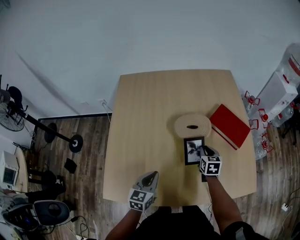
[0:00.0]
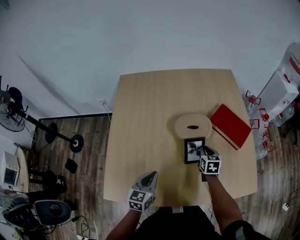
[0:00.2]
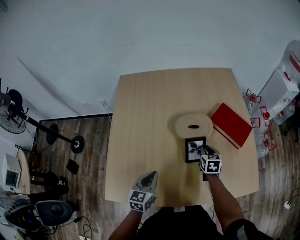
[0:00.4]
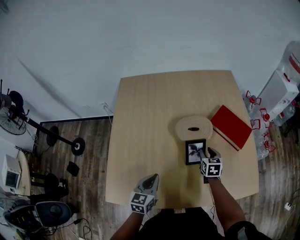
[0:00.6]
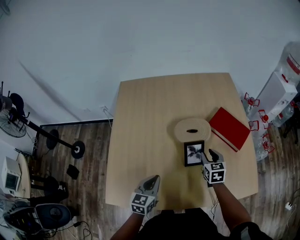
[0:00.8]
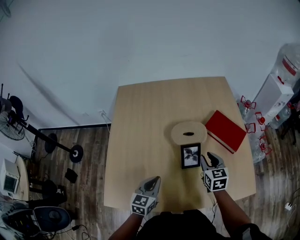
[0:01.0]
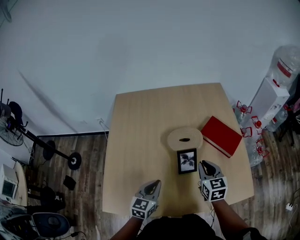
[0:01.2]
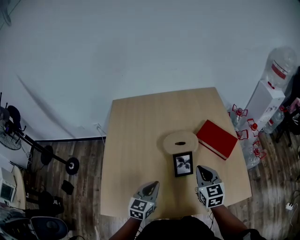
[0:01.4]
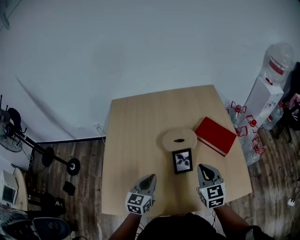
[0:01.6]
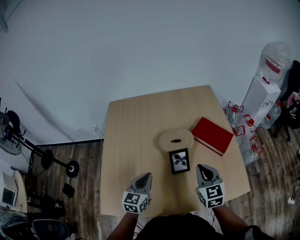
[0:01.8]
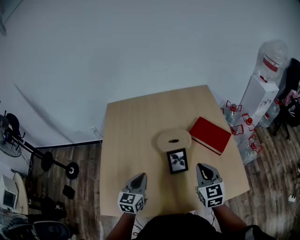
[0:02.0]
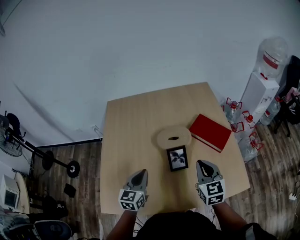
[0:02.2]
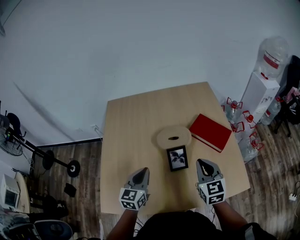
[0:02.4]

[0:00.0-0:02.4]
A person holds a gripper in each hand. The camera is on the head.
0:00.0 to 0:01.2: The right gripper is displaced upward and backward by roughly 15 cm.
0:01.2 to 0:02.4: The two grippers go approximately 5 cm upward.

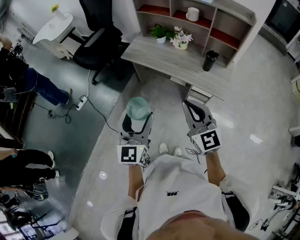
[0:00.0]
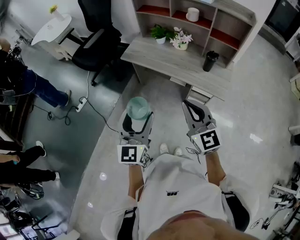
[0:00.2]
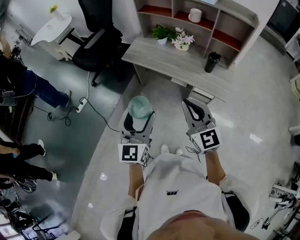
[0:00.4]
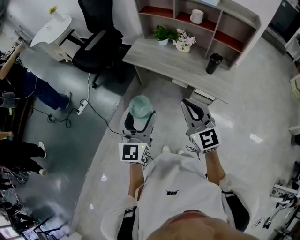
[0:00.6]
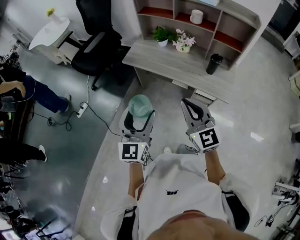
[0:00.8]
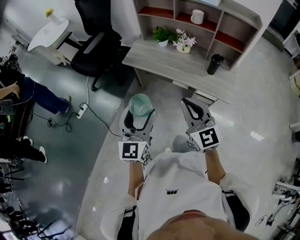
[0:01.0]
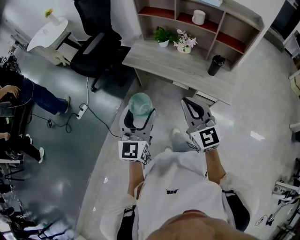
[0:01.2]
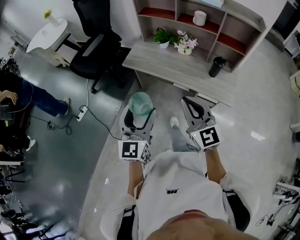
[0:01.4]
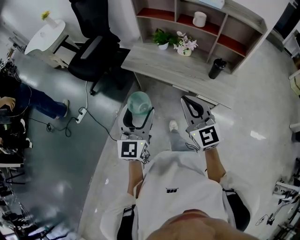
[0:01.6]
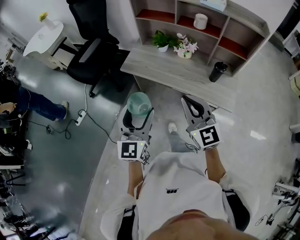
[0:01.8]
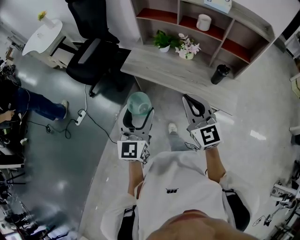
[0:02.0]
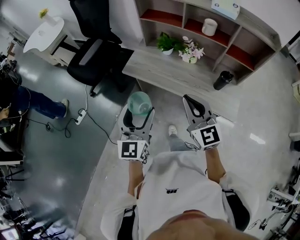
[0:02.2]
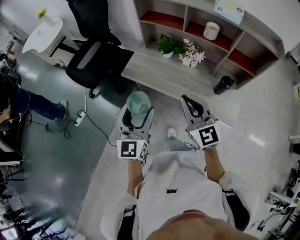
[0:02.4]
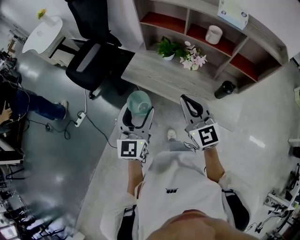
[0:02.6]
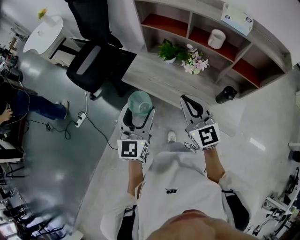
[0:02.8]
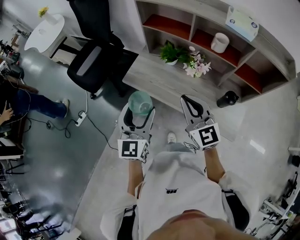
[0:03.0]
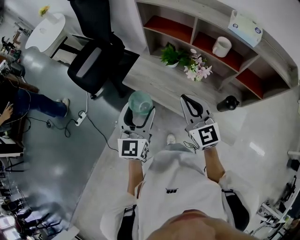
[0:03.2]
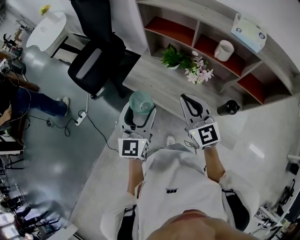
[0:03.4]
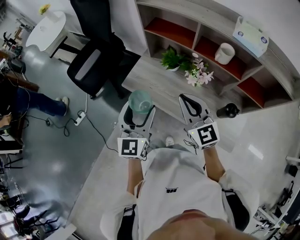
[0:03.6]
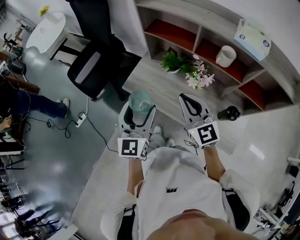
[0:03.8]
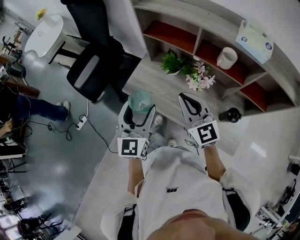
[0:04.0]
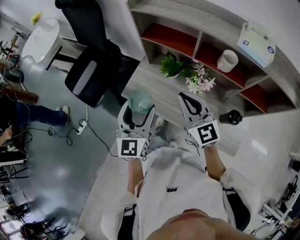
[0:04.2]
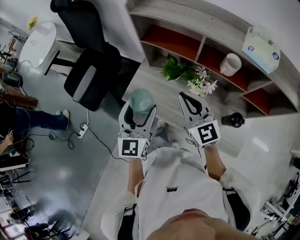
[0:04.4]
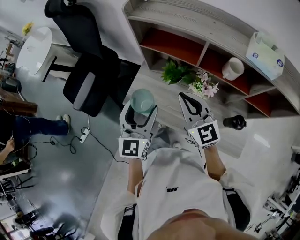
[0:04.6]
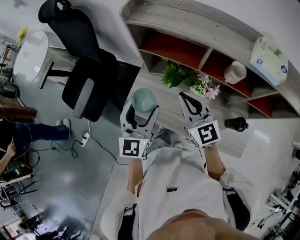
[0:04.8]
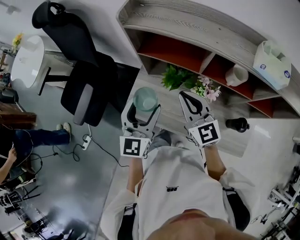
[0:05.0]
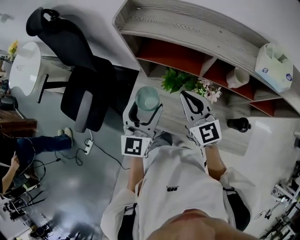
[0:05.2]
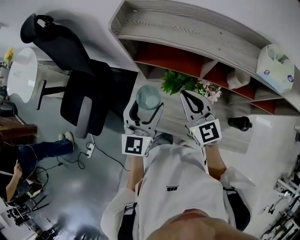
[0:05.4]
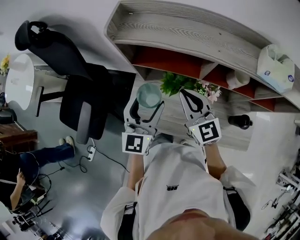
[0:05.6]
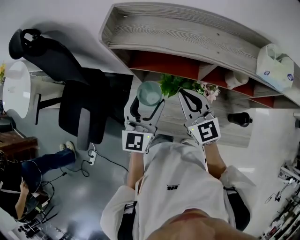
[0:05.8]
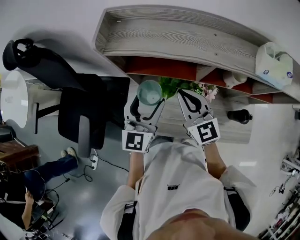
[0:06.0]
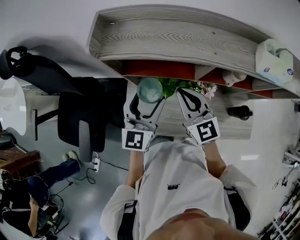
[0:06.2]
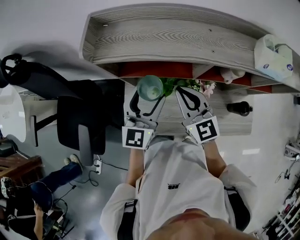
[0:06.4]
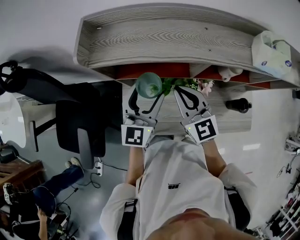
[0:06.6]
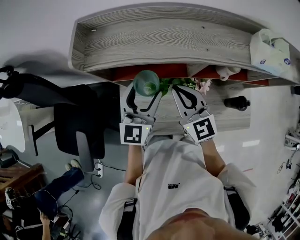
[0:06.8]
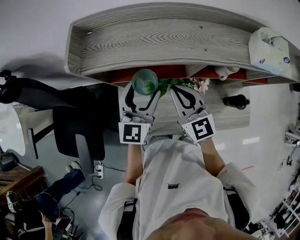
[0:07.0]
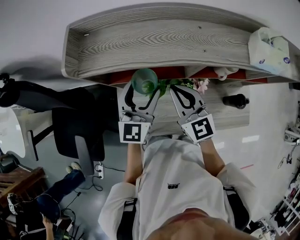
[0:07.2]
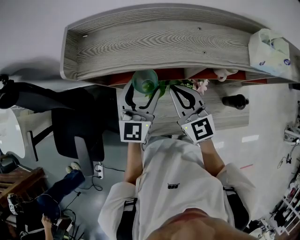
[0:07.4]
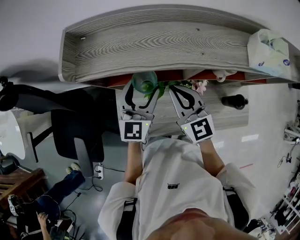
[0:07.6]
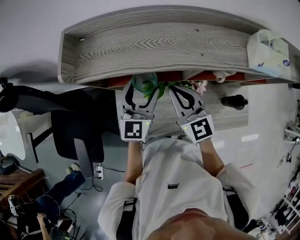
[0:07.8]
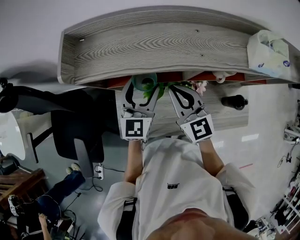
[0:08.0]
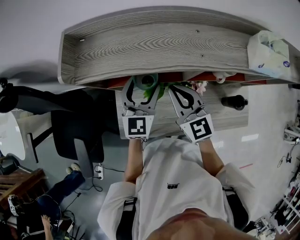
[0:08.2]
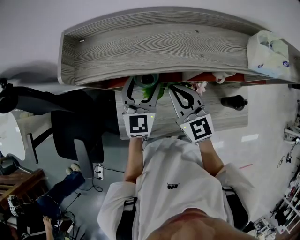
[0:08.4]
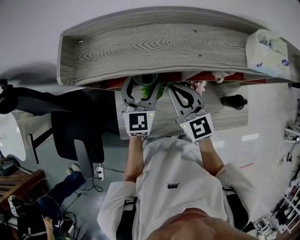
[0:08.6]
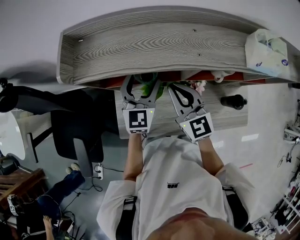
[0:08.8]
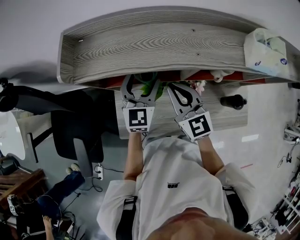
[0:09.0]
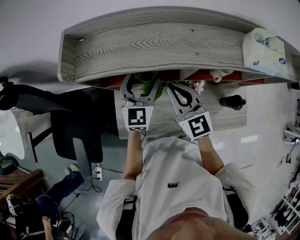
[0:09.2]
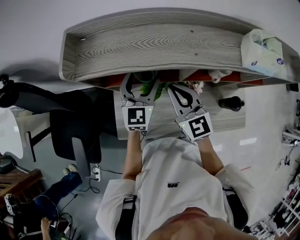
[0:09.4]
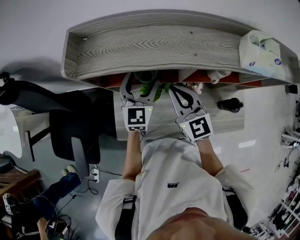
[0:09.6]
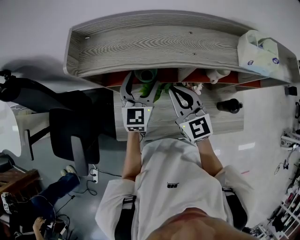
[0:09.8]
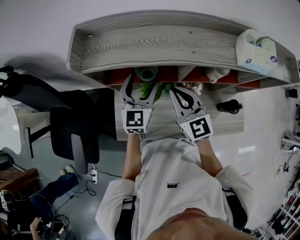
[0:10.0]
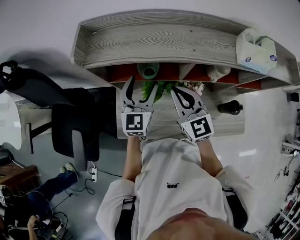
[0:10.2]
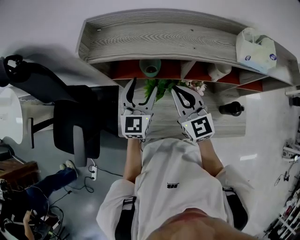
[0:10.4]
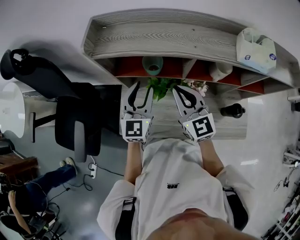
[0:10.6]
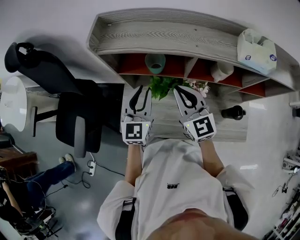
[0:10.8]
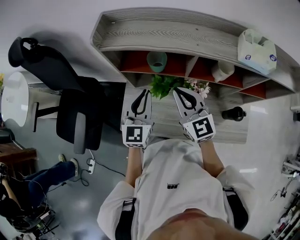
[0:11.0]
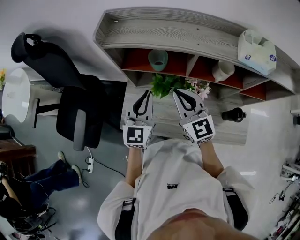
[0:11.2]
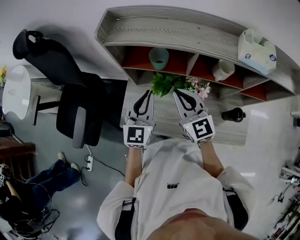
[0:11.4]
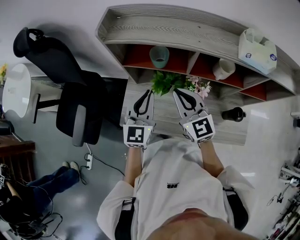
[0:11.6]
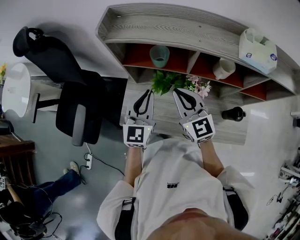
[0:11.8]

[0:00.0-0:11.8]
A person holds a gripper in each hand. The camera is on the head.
0:00.0 to 0:01.4: The right gripper travels forward and to the left by some 10 cm, while the left gripper heads forward, covering some 10 cm.
0:01.4 to 0:03.0: The two grippers go roughly 25 cm forward.
0:03.0 to 0:04.4: The grippers both shift forward by approximately 15 cm.
0:04.4 to 0:06.0: Both grippers travel together forward, roughly 20 cm. The left gripper changes its angle by approximately 30 degrees.
0:06.0 to 0:07.4: The left gripper is displaced forward by approximately 5 cm.
0:07.4 to 0:08.8: The grippers move only a little.
0:08.8 to 0:10.4: The left gripper heads backward, covering some 5 cm.
0:10.4 to 0:11.8: The left gripper travels backward by about 10 cm, and closes. The right gripper changes place by approximately 5 cm.

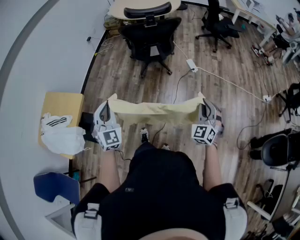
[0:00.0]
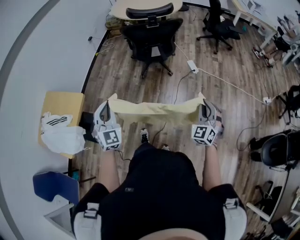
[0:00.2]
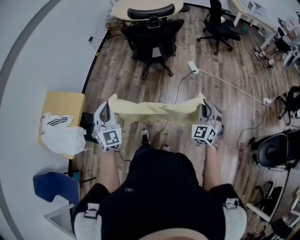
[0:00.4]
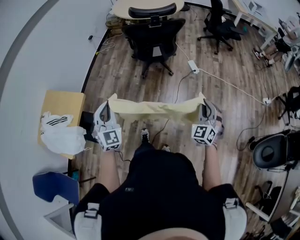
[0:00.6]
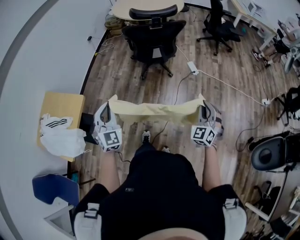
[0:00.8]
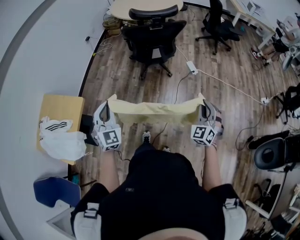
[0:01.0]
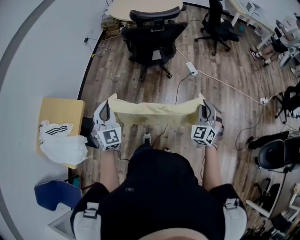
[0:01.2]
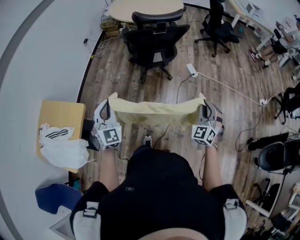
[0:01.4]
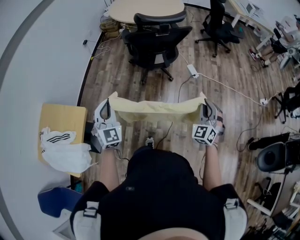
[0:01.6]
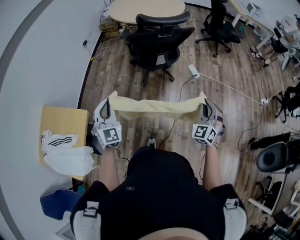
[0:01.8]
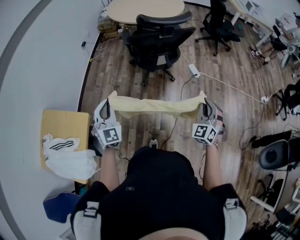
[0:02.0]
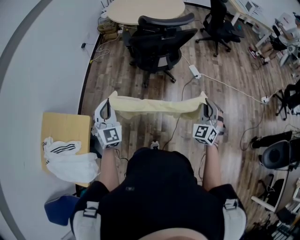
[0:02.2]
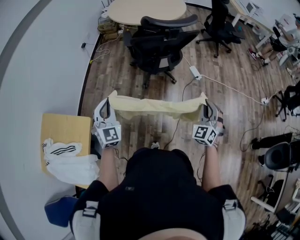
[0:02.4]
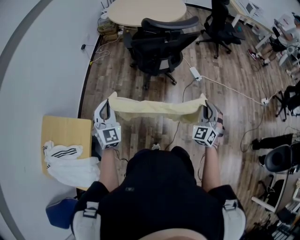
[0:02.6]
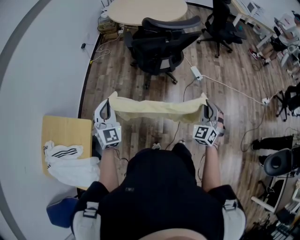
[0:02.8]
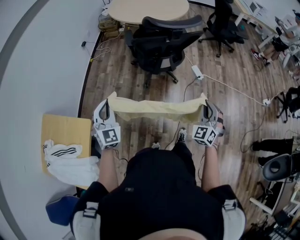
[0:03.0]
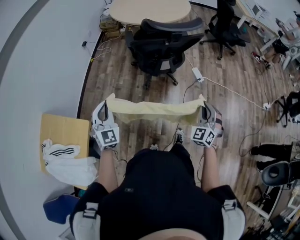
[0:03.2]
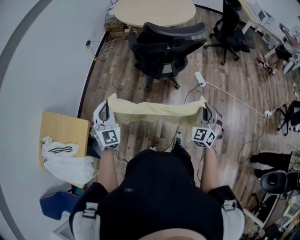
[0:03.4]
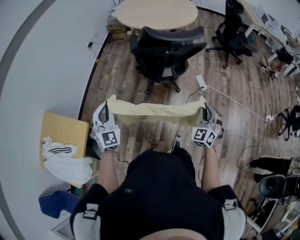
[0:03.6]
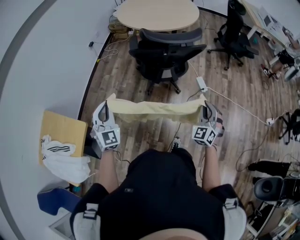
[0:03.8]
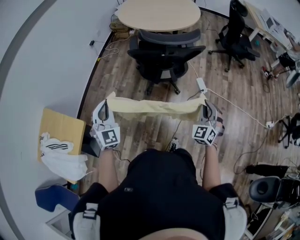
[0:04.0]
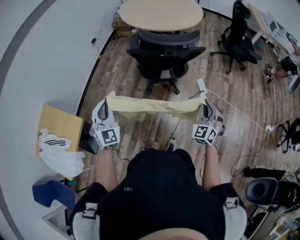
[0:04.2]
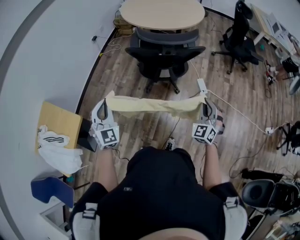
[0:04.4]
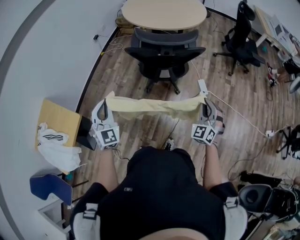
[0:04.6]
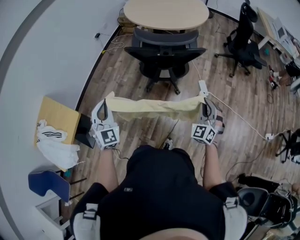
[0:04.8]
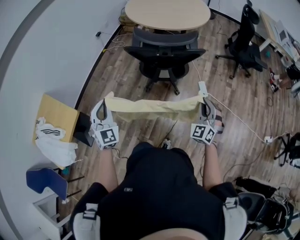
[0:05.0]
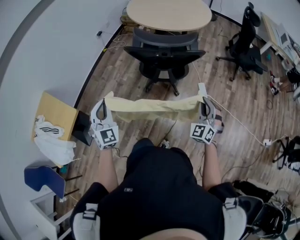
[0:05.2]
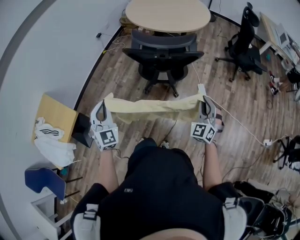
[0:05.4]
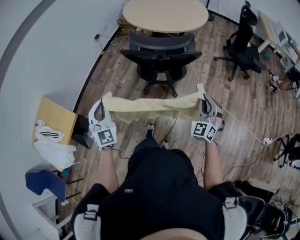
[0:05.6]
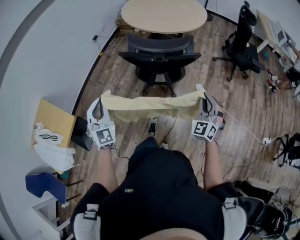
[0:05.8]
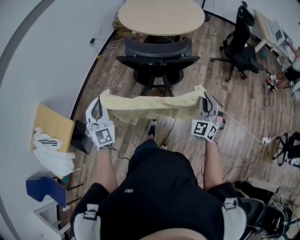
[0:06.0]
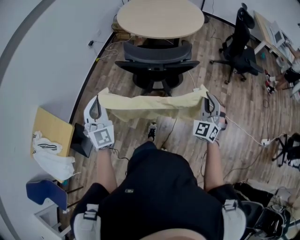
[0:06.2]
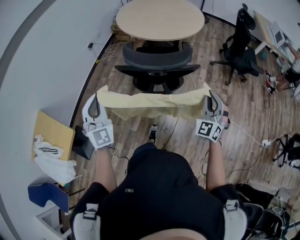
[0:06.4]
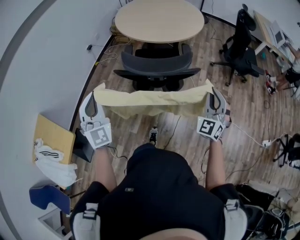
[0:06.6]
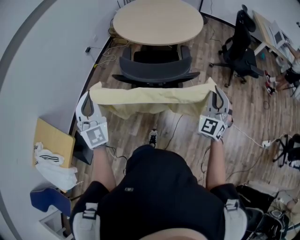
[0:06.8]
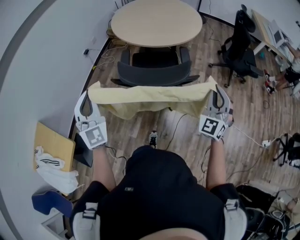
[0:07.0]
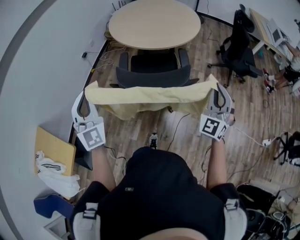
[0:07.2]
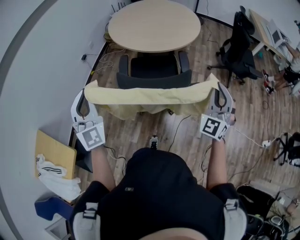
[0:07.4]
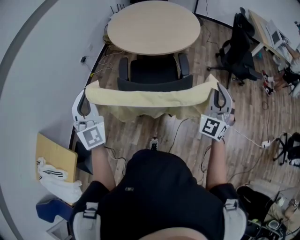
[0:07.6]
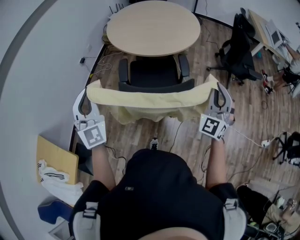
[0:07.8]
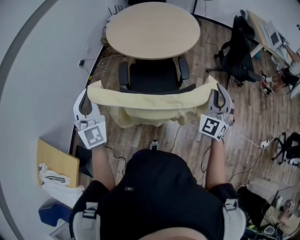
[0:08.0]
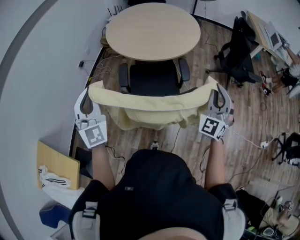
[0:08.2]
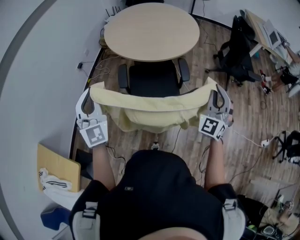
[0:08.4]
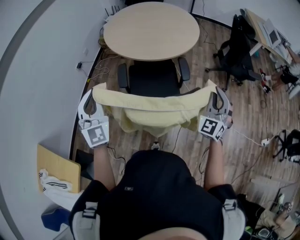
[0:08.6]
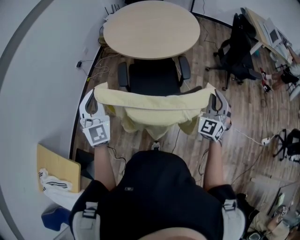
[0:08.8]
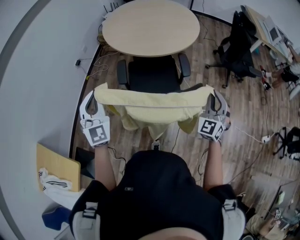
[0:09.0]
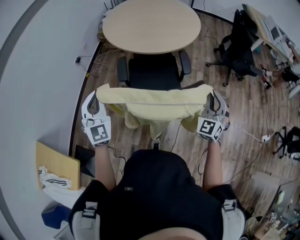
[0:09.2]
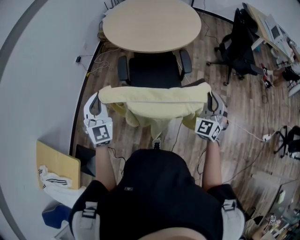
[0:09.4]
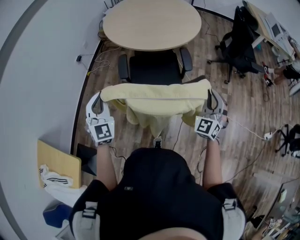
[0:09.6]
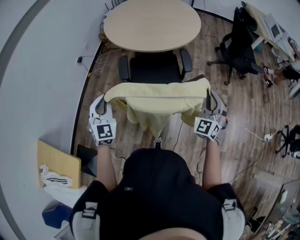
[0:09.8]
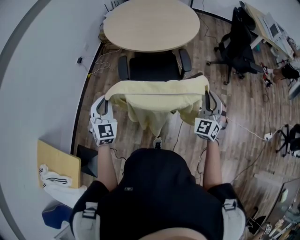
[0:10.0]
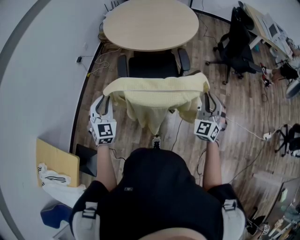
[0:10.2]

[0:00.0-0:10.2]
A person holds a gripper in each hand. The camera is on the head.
0:00.0 to 0:01.4: The right gripper moves to the left and forward, roughly 10 cm; the left gripper heads forward and to the left, covering roughly 15 cm.
0:01.4 to 0:03.0: The grippers both shift forward and to the left by roughly 15 cm.
0:03.0 to 0:04.4: The left gripper moves to the right and forward, some 15 cm; the right gripper shifts about 20 cm forward and to the right.
0:04.4 to 0:05.8: The right gripper heads forward and to the right, covering some 10 cm, while the left gripper goes some 5 cm to the right.
0:05.8 to 0:07.2: Both grippers move forward and upward, roughly 25 cm.
0:07.2 to 0:08.8: The two grippers go about 10 cm forward.
0:08.8 to 0:10.2: The right gripper heads backward and downward, covering roughly 10 cm; the left gripper goes approximately 15 cm downward and backward.
